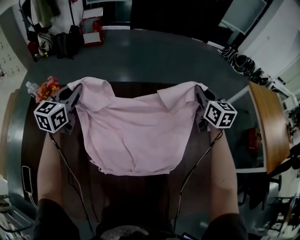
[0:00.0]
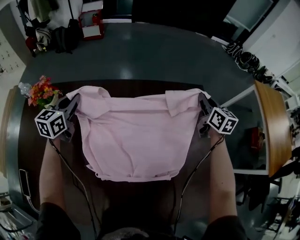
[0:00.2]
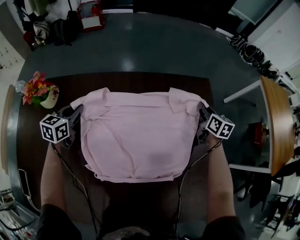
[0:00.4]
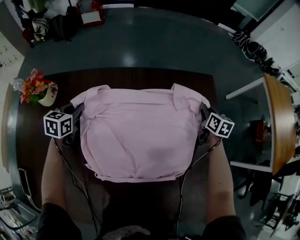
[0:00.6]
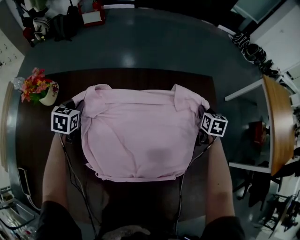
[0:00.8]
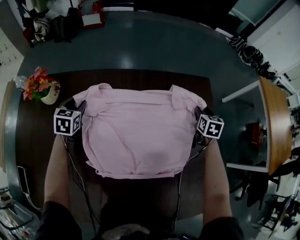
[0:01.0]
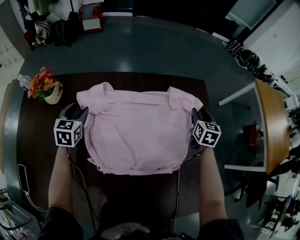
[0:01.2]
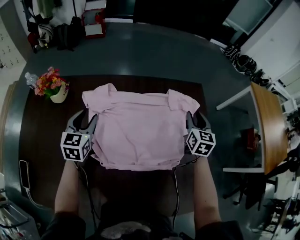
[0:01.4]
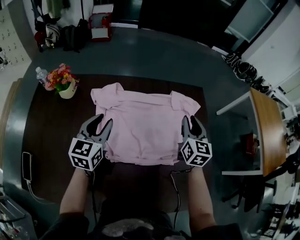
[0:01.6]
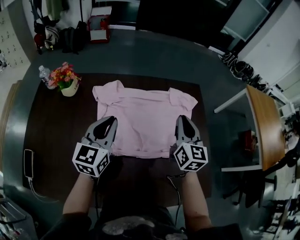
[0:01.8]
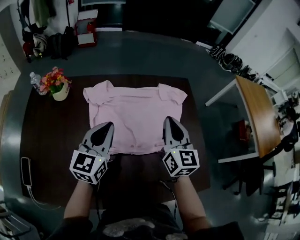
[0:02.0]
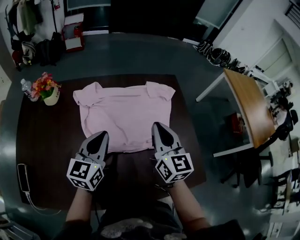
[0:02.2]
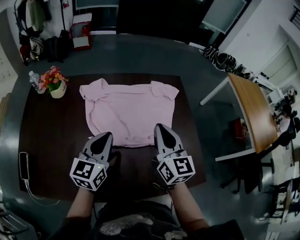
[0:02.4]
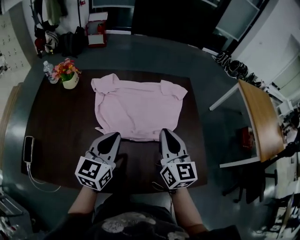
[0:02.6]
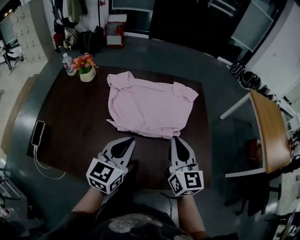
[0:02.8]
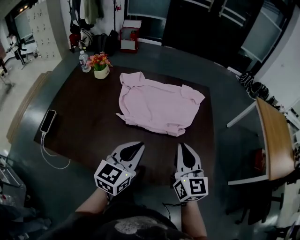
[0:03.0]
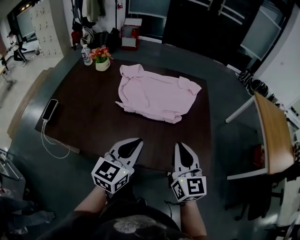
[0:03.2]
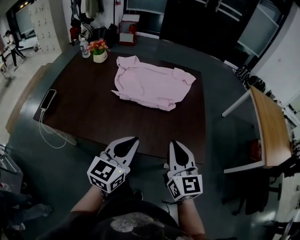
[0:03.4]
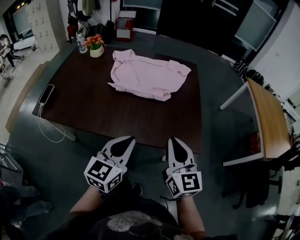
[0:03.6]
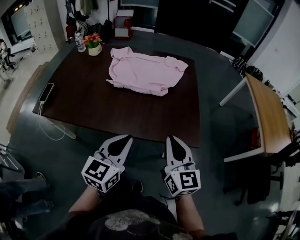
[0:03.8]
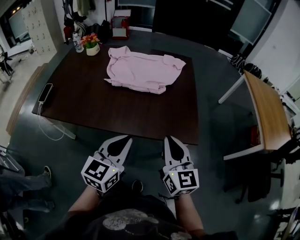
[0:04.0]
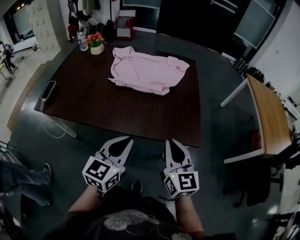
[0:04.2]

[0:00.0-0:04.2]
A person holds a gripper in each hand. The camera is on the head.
0:00.0 to 0:01.4: The grippers both shift downward and backward by about 15 cm. The left gripper opens; the right gripper opens.
0:01.4 to 0:02.8: The right gripper shifts about 35 cm backward, rotates approximately 30 degrees, and closes up. The left gripper travels backward and to the right by approximately 35 cm, swivels some 20 degrees, and closes.
0:02.8 to 0:04.2: The right gripper heads backward, covering some 25 cm, while the left gripper travels backward and to the right by some 30 cm.

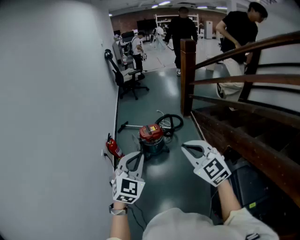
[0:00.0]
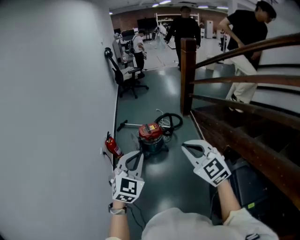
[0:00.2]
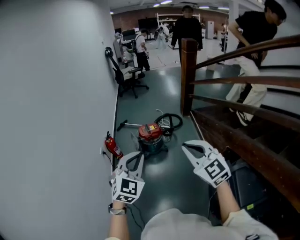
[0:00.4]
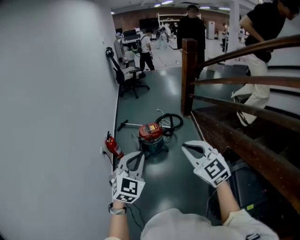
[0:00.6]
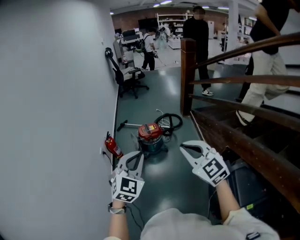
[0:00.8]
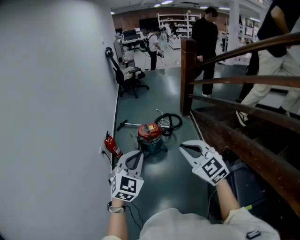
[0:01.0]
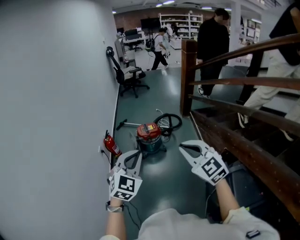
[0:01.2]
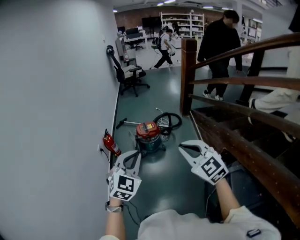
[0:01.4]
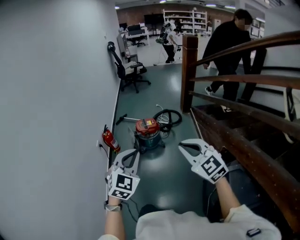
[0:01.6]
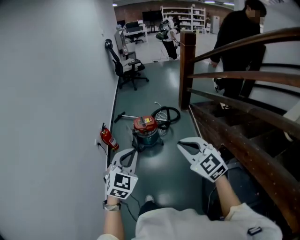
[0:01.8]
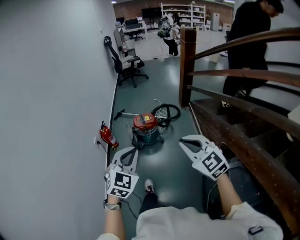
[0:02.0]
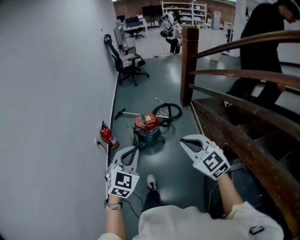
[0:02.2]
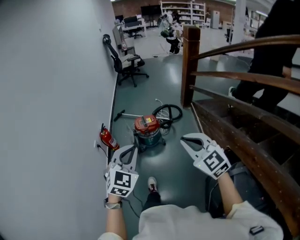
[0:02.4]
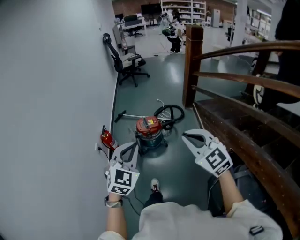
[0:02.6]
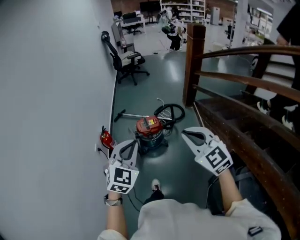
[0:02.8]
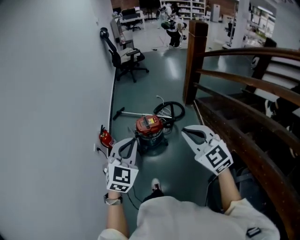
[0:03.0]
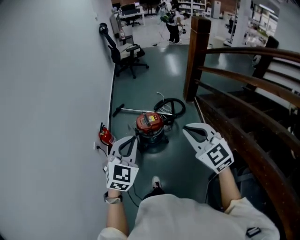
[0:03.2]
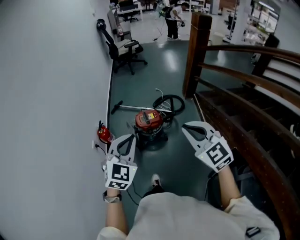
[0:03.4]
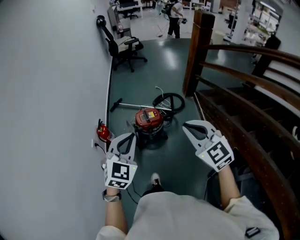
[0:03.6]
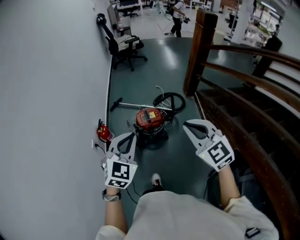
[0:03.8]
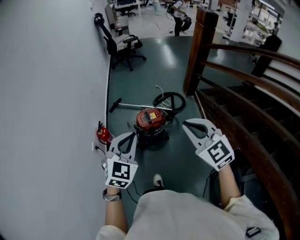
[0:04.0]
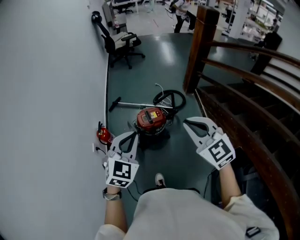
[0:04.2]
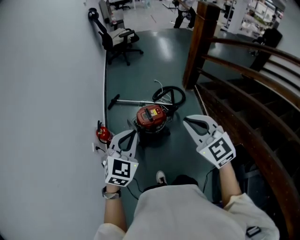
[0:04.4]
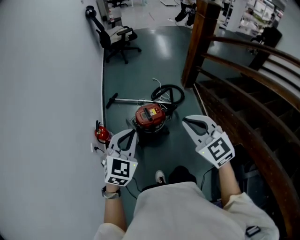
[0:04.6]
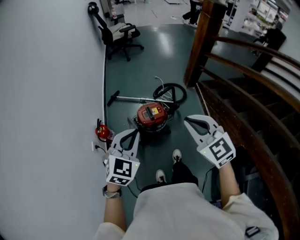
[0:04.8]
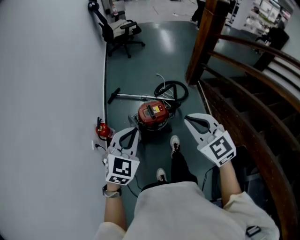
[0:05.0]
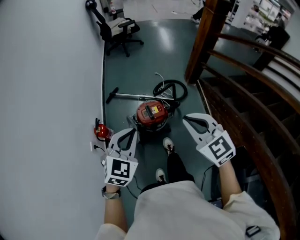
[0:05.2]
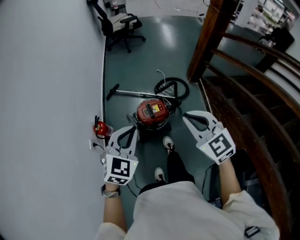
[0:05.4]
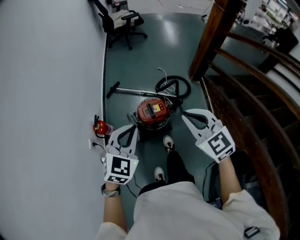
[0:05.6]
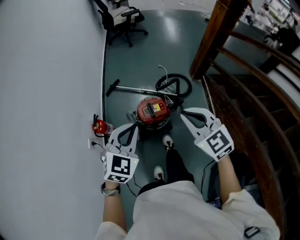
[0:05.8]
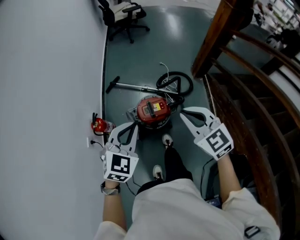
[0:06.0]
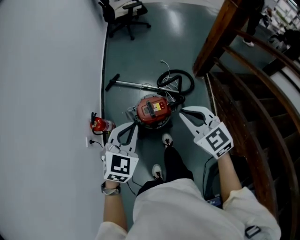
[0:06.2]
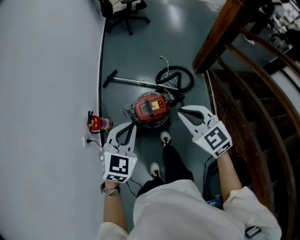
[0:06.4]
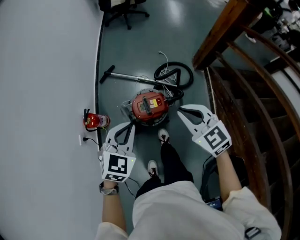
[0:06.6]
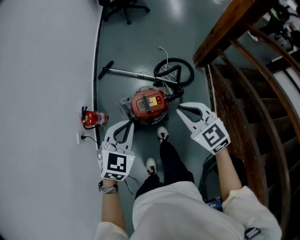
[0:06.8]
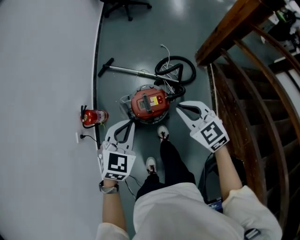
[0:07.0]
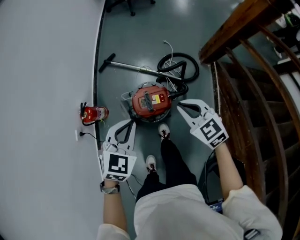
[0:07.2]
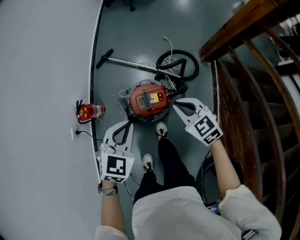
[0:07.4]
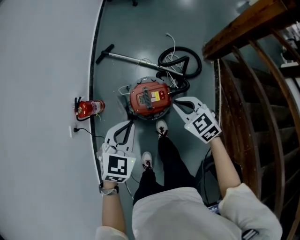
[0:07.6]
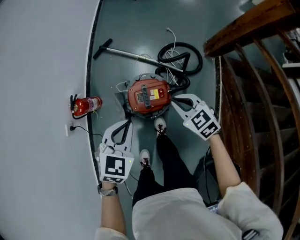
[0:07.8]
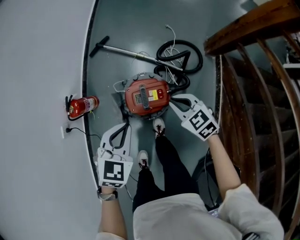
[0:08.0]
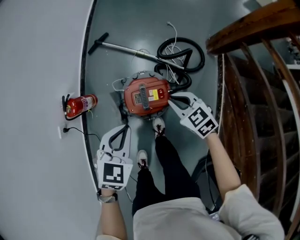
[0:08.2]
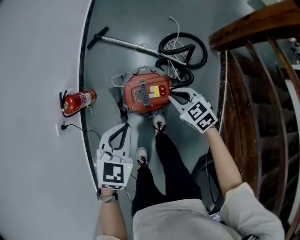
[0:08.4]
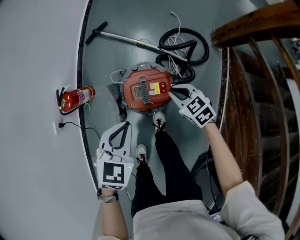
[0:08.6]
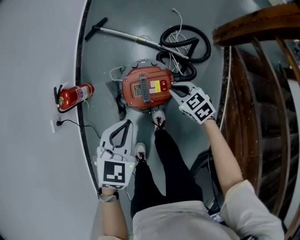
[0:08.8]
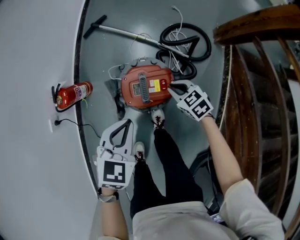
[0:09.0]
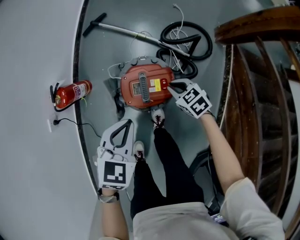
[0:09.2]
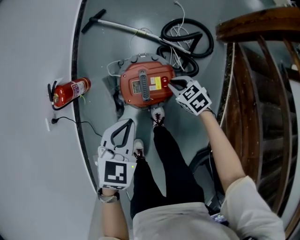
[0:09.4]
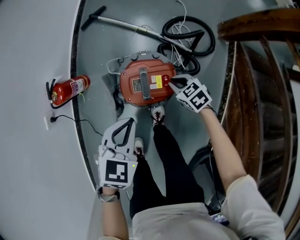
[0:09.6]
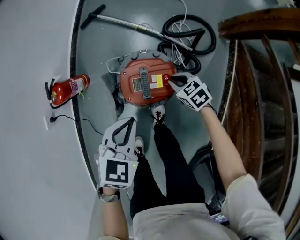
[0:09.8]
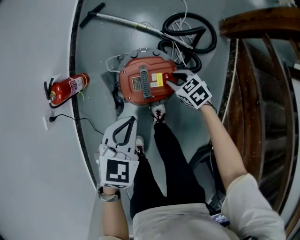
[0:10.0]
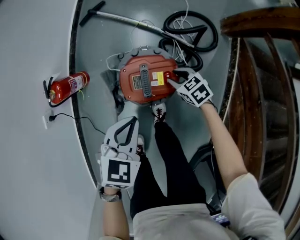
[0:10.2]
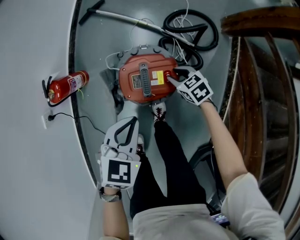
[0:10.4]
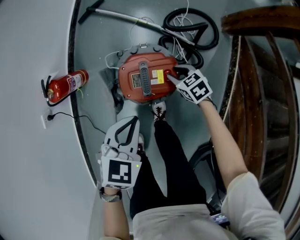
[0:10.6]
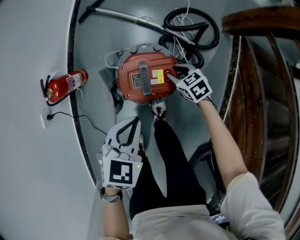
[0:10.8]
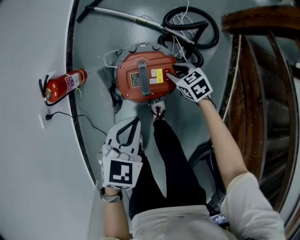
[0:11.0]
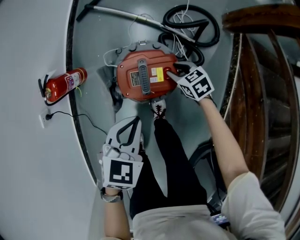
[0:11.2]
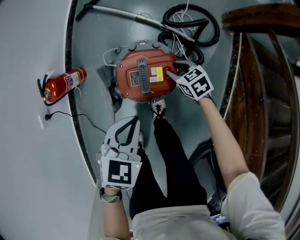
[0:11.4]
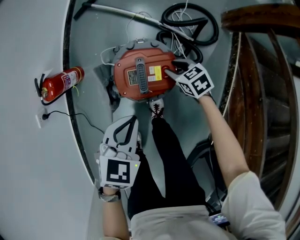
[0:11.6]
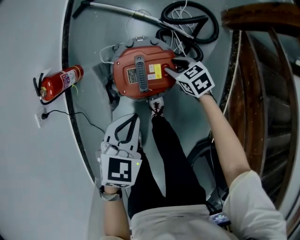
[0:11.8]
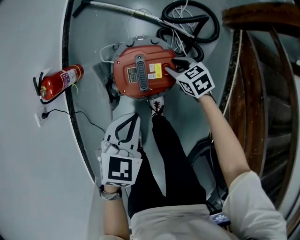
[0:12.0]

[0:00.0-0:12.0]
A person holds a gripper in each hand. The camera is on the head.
0:00.0 to 0:01.6: Both grippers move to the right, about 5 cm.
0:01.6 to 0:03.0: Both grippers travel together forward, about 20 cm.
0:03.0 to 0:04.4: Both grippers move forward and to the left, approximately 15 cm.
0:04.4 to 0:06.0: Both grippers move forward and downward, some 20 cm.
0:06.0 to 0:07.6: The two grippers go about 25 cm downward and forward. The right gripper swivels approximately 20 degrees.
0:07.6 to 0:09.0: The right gripper is displaced downward by approximately 25 cm, while the left gripper shifts some 15 cm downward.
0:09.0 to 0:10.4: The left gripper shifts roughly 5 cm downward. Meanwhile the right gripper shifts about 10 cm downward, and opens its fingers.
0:10.4 to 0:12.0: There are only small adjustments of the grippers.

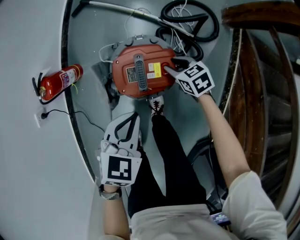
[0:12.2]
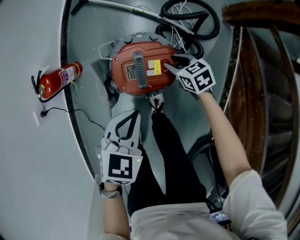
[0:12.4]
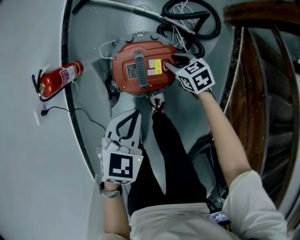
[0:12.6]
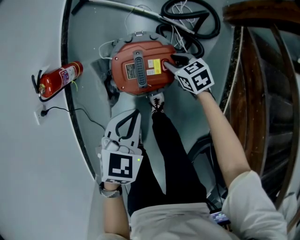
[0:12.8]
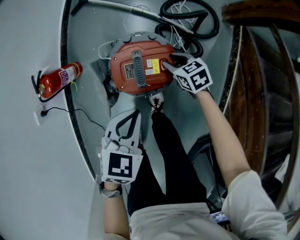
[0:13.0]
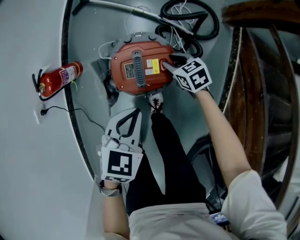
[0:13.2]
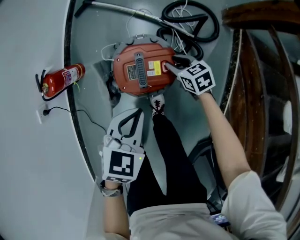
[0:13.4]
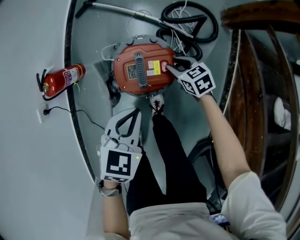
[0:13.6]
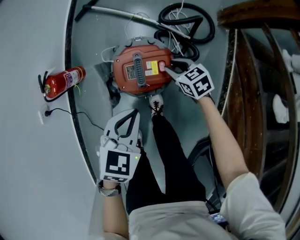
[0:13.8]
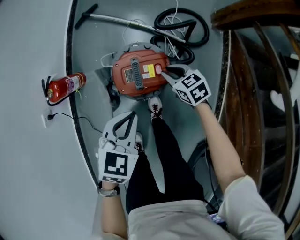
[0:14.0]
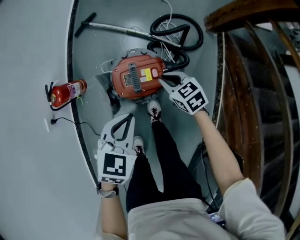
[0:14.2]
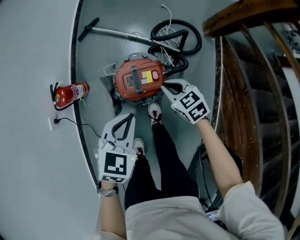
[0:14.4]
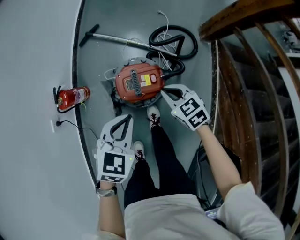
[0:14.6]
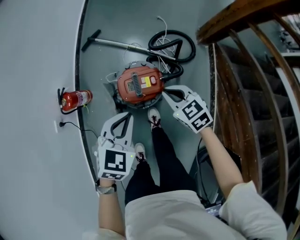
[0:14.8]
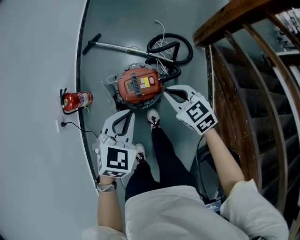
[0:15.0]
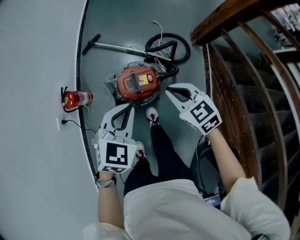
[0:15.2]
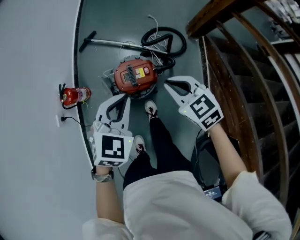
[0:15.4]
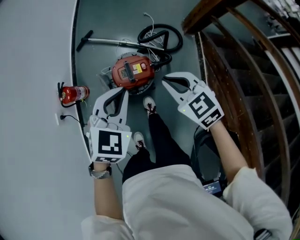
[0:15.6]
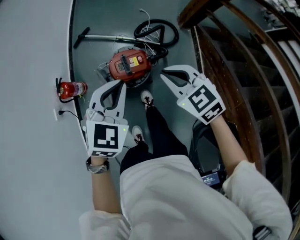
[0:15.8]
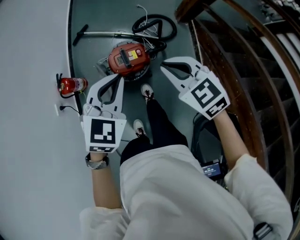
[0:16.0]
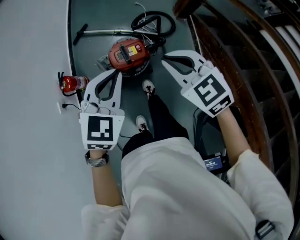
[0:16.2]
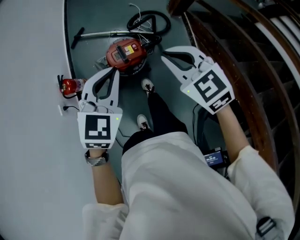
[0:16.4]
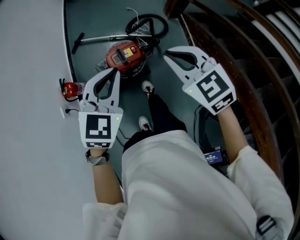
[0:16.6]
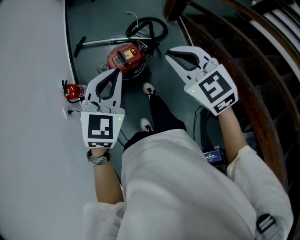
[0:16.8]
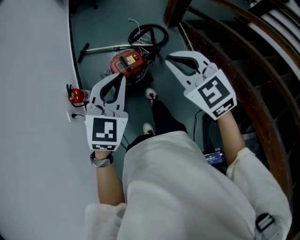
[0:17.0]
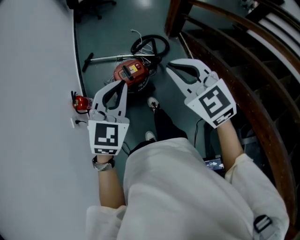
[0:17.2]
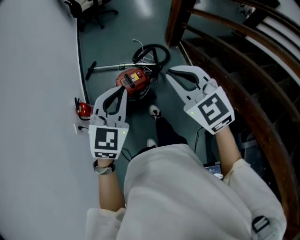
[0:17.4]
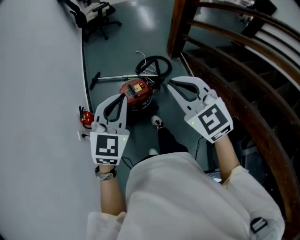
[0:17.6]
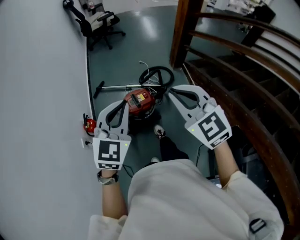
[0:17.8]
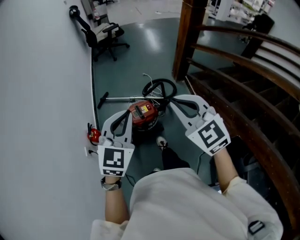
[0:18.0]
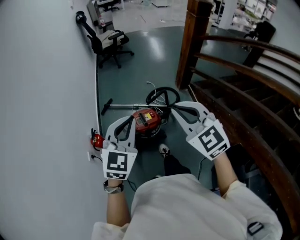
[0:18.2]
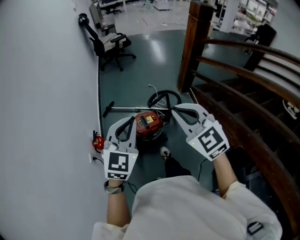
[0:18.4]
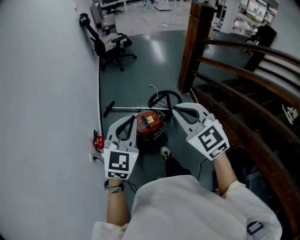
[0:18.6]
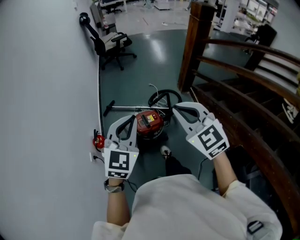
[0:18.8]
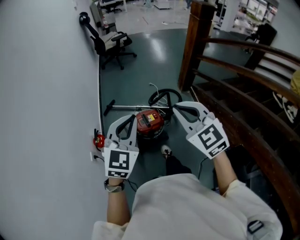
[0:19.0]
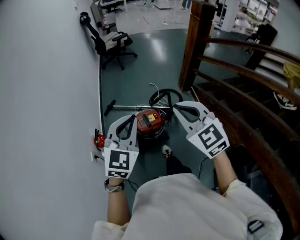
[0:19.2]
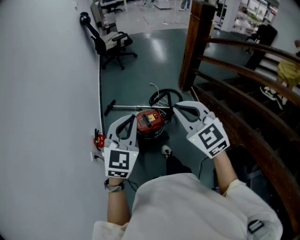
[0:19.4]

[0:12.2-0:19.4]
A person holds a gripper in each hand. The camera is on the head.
0:12.2 to 0:13.6: The grippers make only small movements.
0:13.6 to 0:15.0: The right gripper is displaced upward by approximately 30 cm, and closes. The left gripper moves upward, about 20 cm.
0:15.0 to 0:16.6: The grippers both shift upward and backward by some 25 cm.
0:16.6 to 0:18.0: Both grippers move upward and backward, roughly 15 cm. The right gripper changes its angle by roughly 20 degrees.
0:18.0 to 0:19.4: The grippers stay close to where they were, moving slightly.
